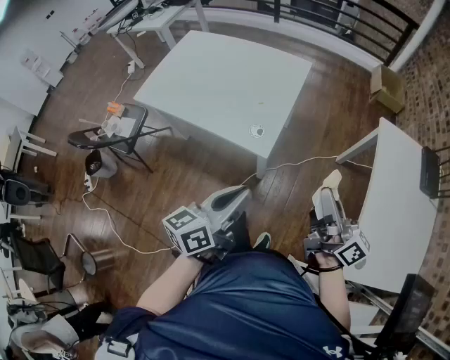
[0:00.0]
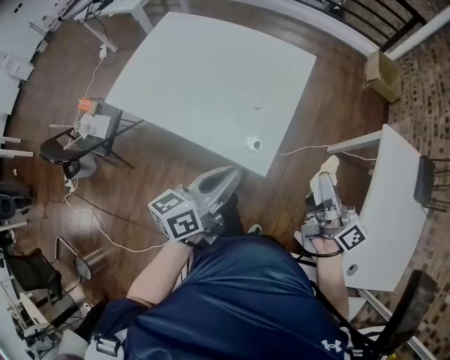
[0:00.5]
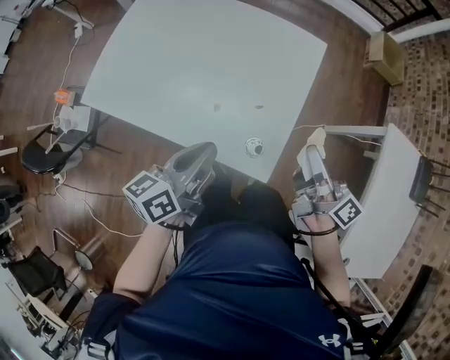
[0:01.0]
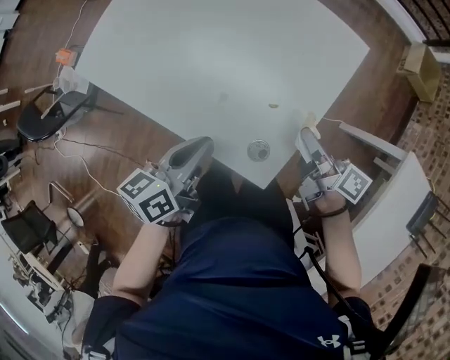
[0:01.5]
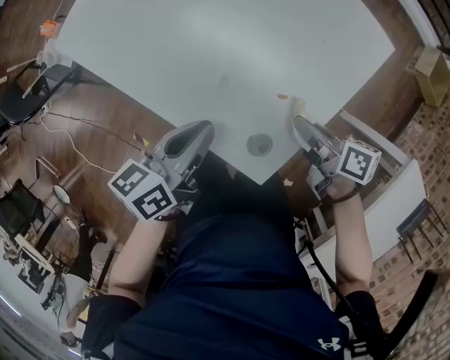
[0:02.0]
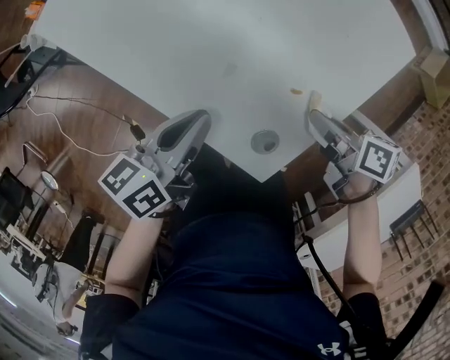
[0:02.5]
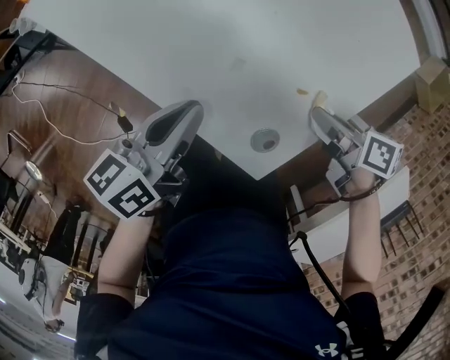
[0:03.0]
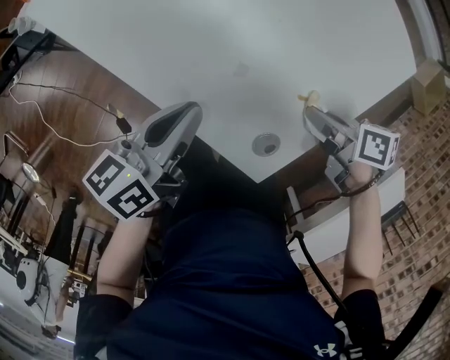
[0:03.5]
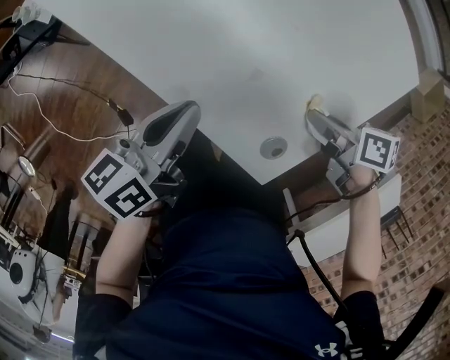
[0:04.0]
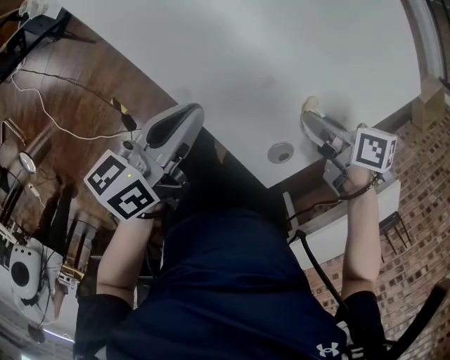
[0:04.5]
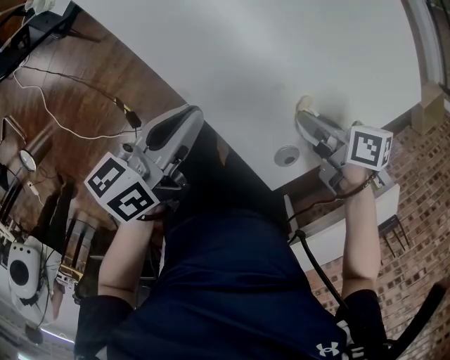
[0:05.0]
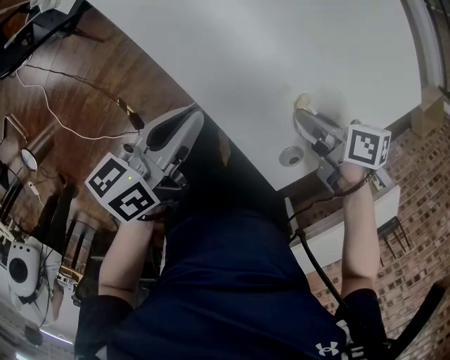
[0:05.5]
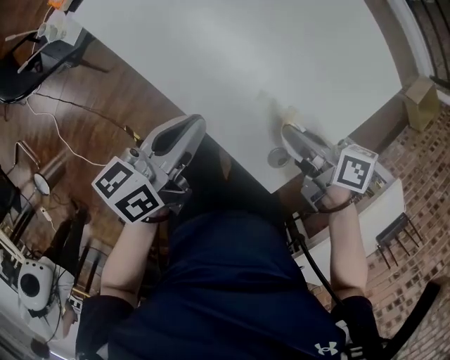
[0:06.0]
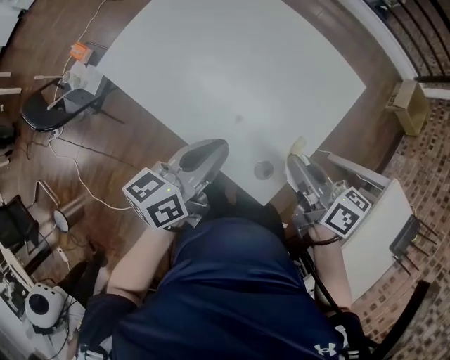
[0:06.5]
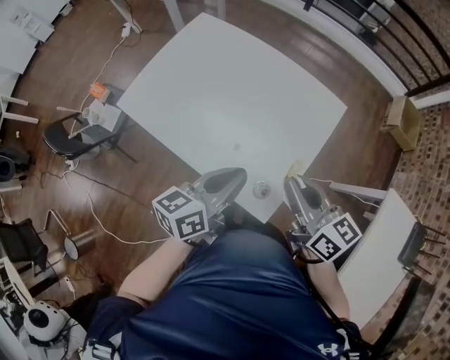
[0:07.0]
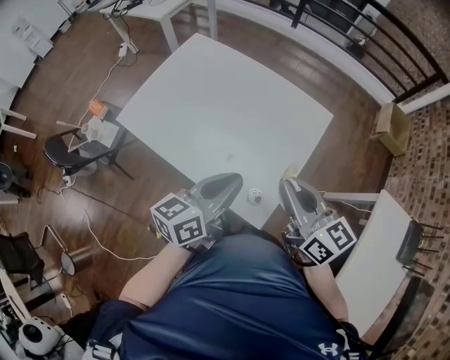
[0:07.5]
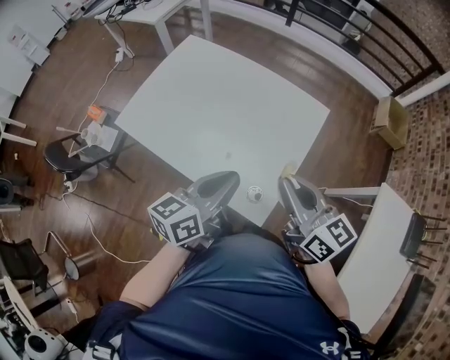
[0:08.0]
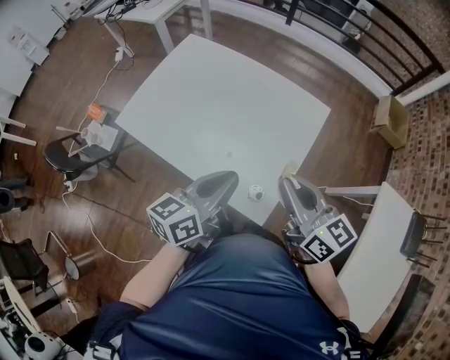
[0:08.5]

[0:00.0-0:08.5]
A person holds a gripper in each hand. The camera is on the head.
0:00.0 to 0:02.0: The right gripper shifts by approximately 50 cm, and tips its fingers downward by approximately 40 degrees. Meanwhile the left gripper changes place by approximately 40 cm, and swivels approximately 30 degrees.
0:02.0 to 0:04.0: The left gripper shifts roughly 5 cm to the left, while the right gripper moves about 5 cm, and rotates roughly 20 degrees.
0:04.0 to 0:06.5: Both grippers travel together upward, about 15 cm. The right gripper swivels some 40 degrees; the left gripper rotates approximately 20 degrees.
0:06.5 to 0:08.5: The left gripper moves upward and to the right, some 10 cm. Meanwhile the right gripper moves upward, approximately 10 cm, and rotates some 30 degrees.

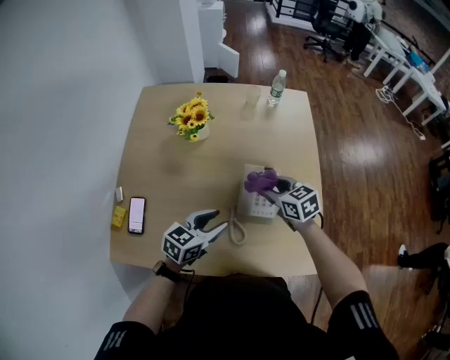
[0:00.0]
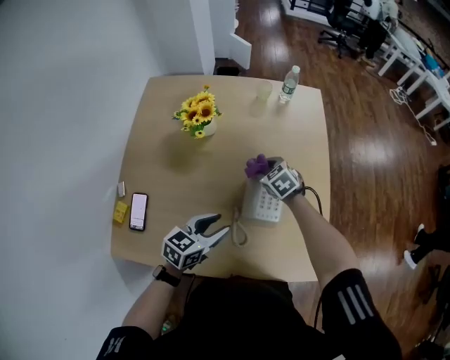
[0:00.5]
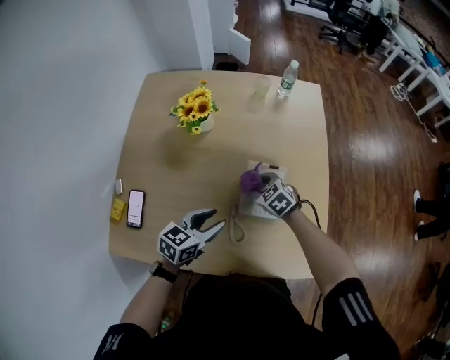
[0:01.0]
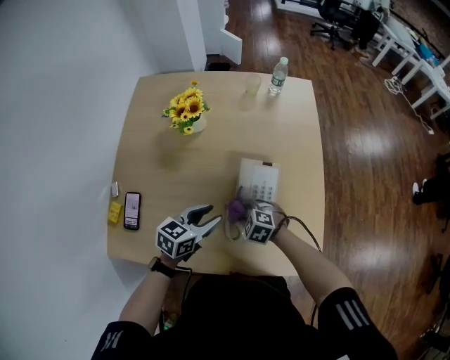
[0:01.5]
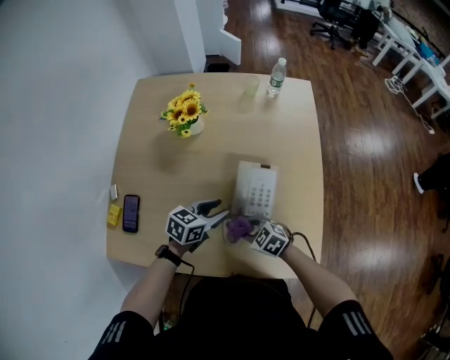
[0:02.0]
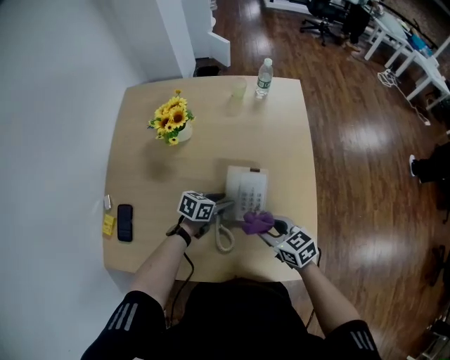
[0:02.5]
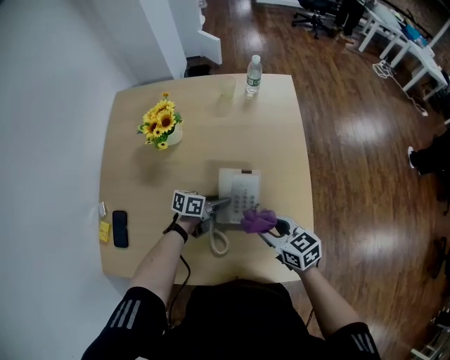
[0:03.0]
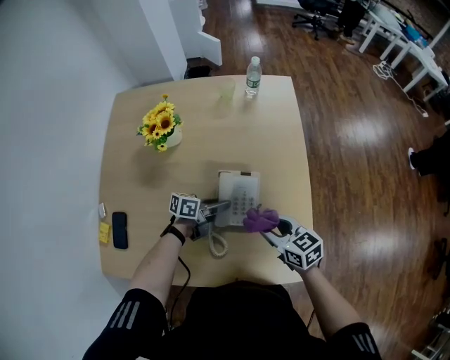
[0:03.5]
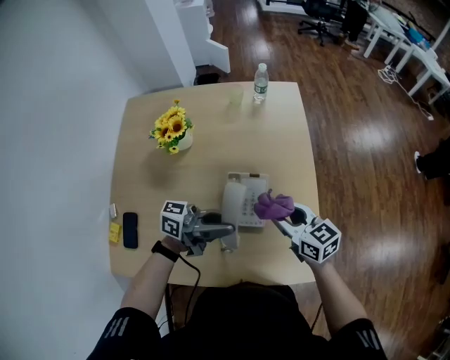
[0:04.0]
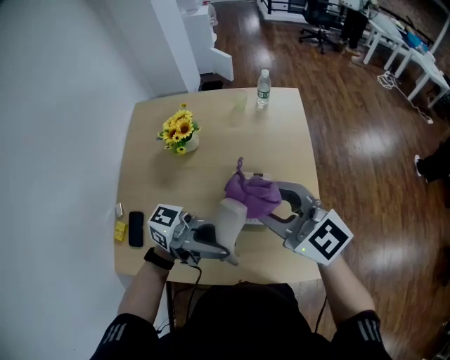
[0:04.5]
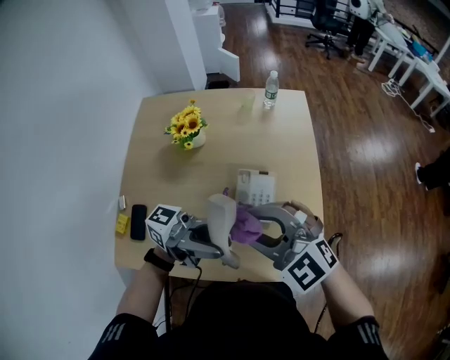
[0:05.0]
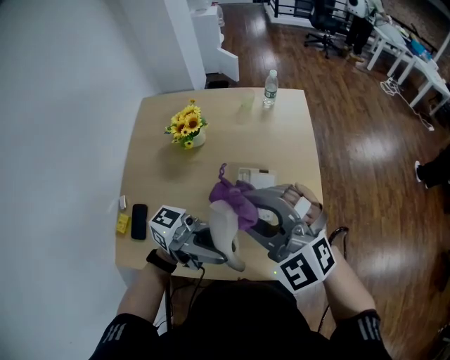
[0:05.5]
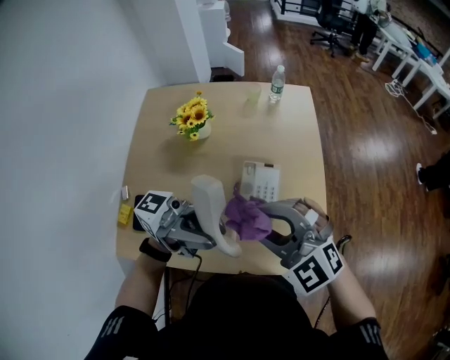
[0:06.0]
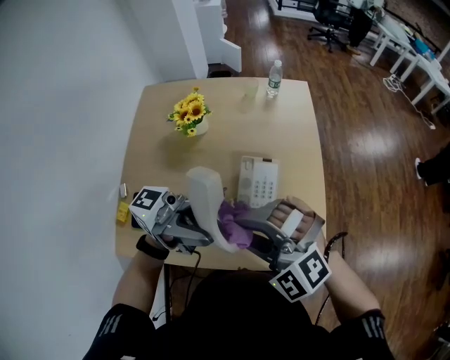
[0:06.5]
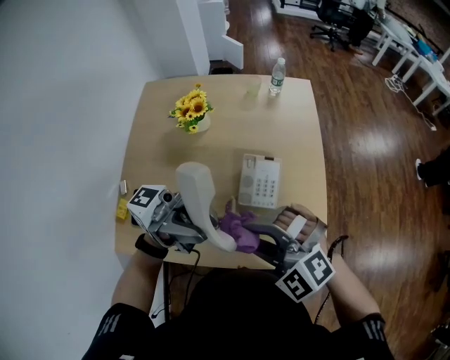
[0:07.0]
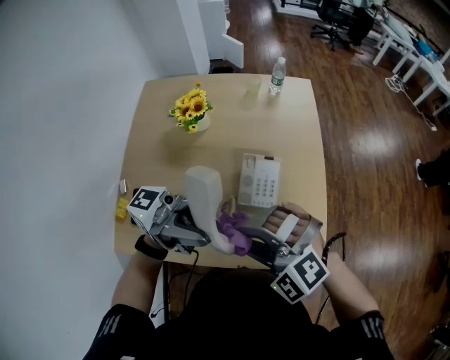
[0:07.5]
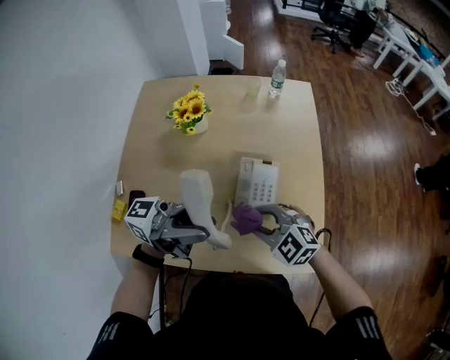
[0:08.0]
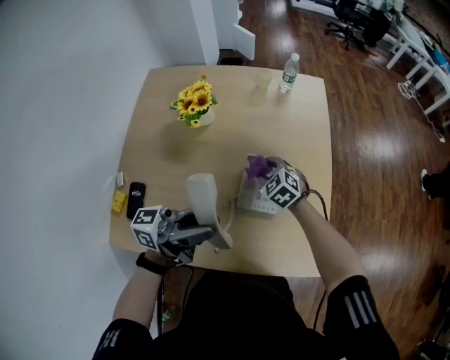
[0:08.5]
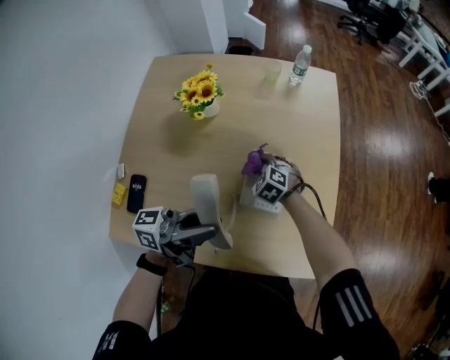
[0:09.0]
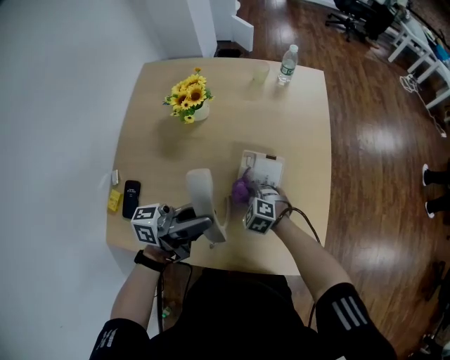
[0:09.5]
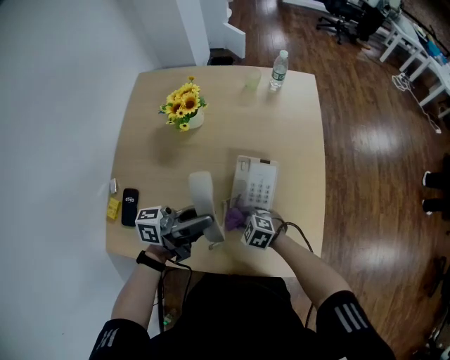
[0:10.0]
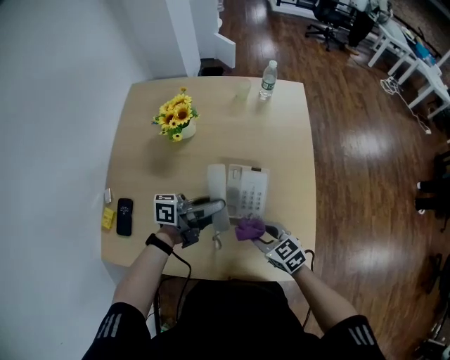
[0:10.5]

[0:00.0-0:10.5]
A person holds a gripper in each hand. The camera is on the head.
0:00.0 to 0:02.0: The left gripper moves roughly 10 cm. The right gripper heads downward, covering about 15 cm, and turns by about 30 degrees.
0:02.0 to 0:04.0: The grippers both shift upward by some 15 cm. The left gripper tips its fingers upward by approximately 50 degrees; the right gripper swivels roughly 50 degrees.
0:04.0 to 0:06.5: The left gripper heads upward, covering roughly 20 cm, and turns by roughly 30 degrees. Meanwhile the right gripper moves approximately 25 cm, and rolls counterclockwise, seen from behind, by roughly 80 degrees.
0:06.5 to 0:08.5: The right gripper moves downward, about 25 cm, and swivels about 50 degrees. The left gripper travels downward by some 10 cm, and swivels approximately 30 degrees.
0:08.5 to 0:10.5: The left gripper heads downward, covering some 15 cm, and changes its angle by roughly 20 degrees. The right gripper reaches roughly 10 cm downward, then returns, and rotates roughly 30 degrees.

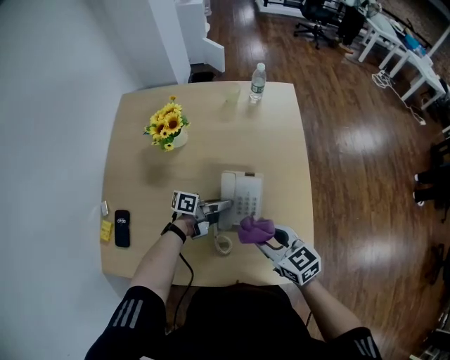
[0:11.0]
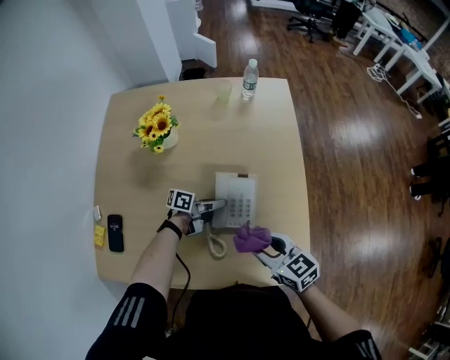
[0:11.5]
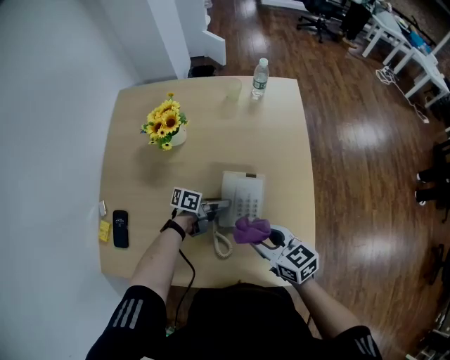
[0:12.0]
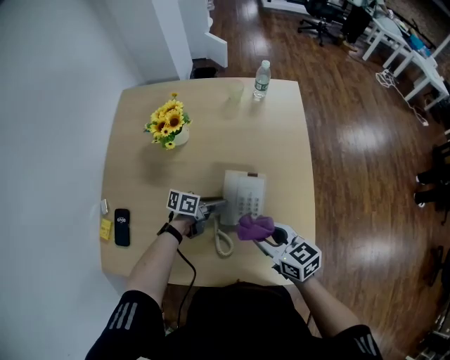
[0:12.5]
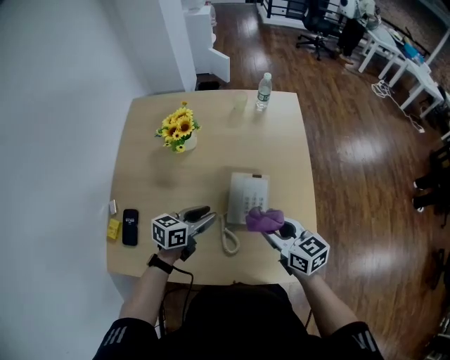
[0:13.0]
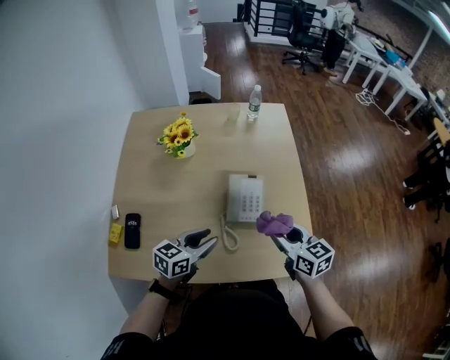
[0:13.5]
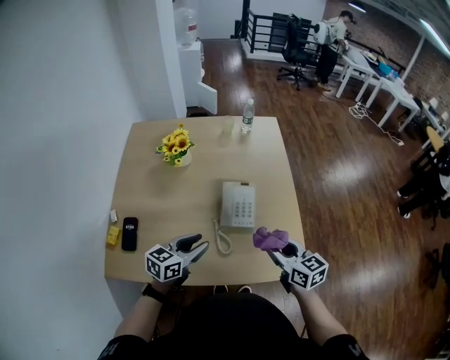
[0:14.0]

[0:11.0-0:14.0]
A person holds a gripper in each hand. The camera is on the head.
0:11.0 to 0:12.5: The left gripper moves about 5 cm.
0:12.5 to 0:14.0: The right gripper shifts approximately 15 cm backward, to the right and upward, while the left gripper shifts about 25 cm backward and upward, and changes its angle by roughly 40 degrees.

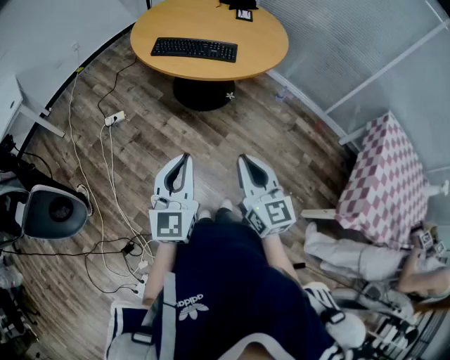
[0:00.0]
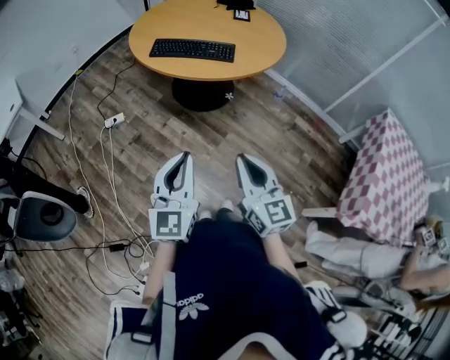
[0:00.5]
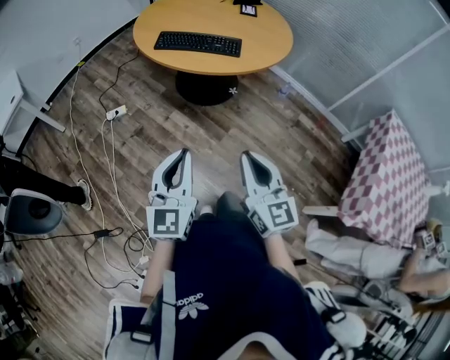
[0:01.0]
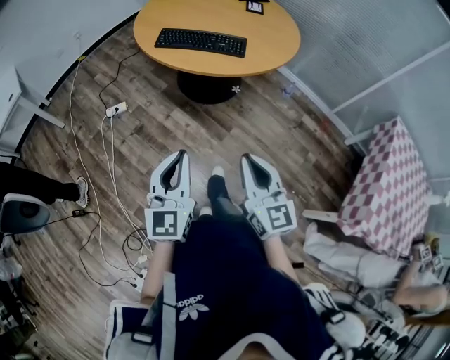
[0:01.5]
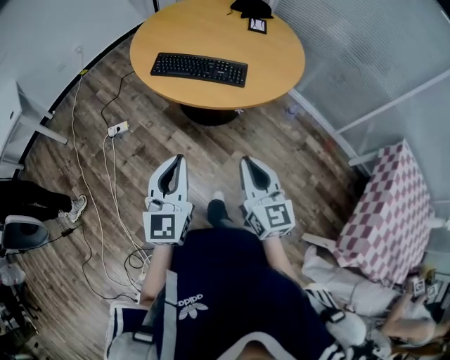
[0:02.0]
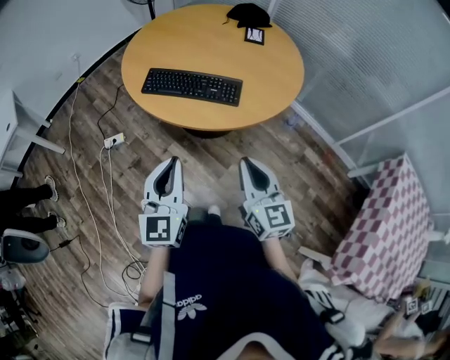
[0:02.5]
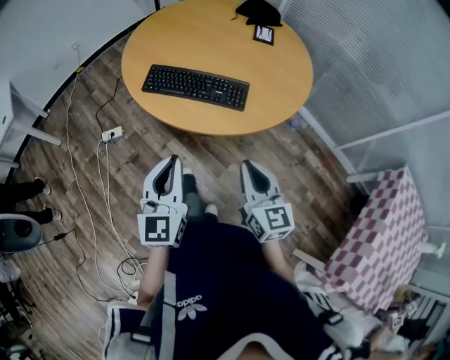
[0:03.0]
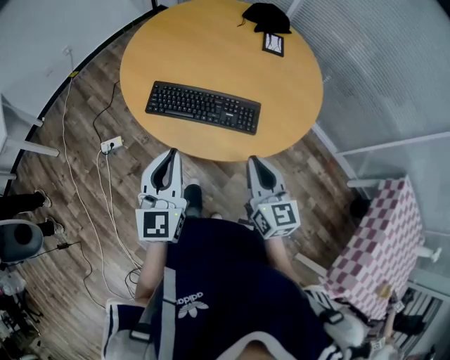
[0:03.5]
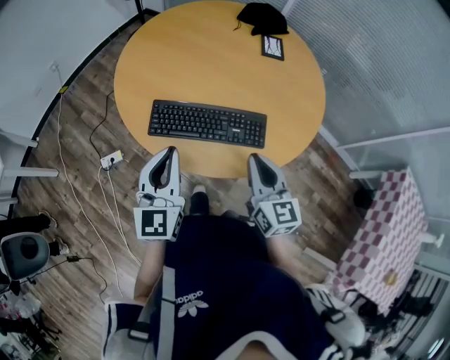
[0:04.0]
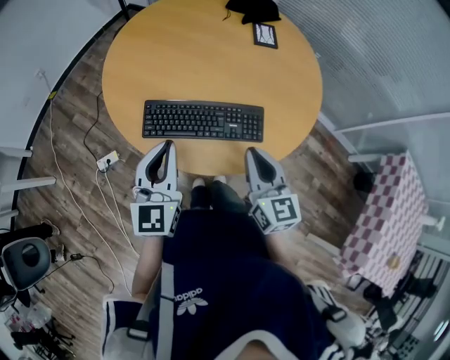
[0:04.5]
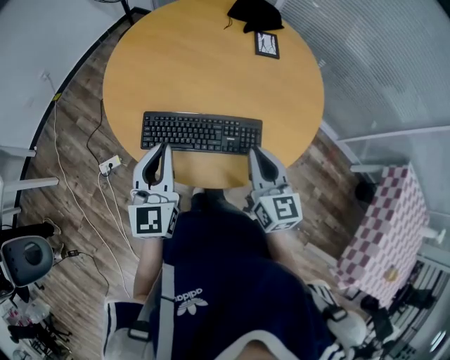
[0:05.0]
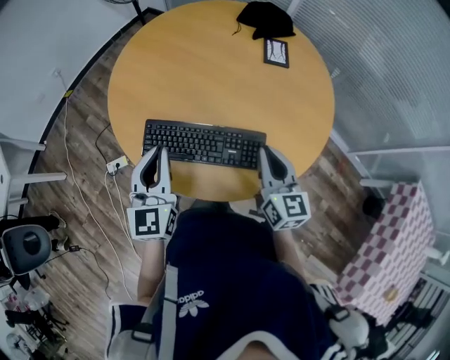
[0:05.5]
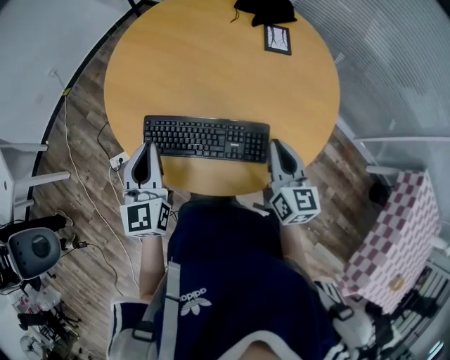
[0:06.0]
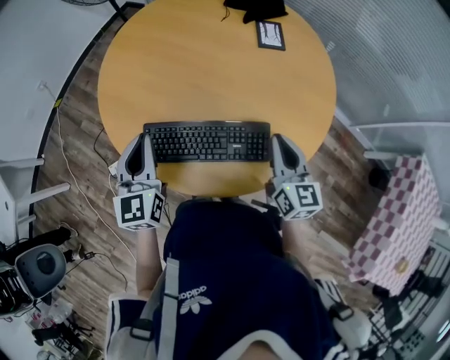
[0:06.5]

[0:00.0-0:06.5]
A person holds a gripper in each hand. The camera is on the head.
0:00.0 to 0:02.0: Both grippers travel together forward, approximately 15 cm.
0:02.0 to 0:04.5: Both grippers move forward, roughly 35 cm.
0:04.5 to 0:06.5: The right gripper moves forward and to the right, about 15 cm, while the left gripper moves forward, roughly 10 cm.
